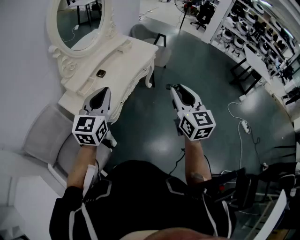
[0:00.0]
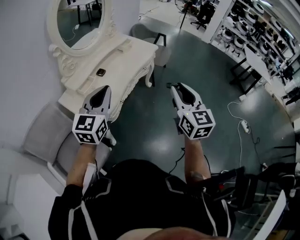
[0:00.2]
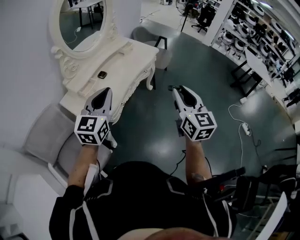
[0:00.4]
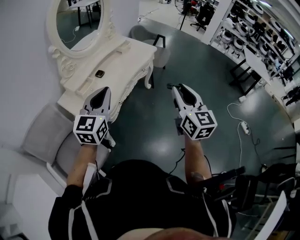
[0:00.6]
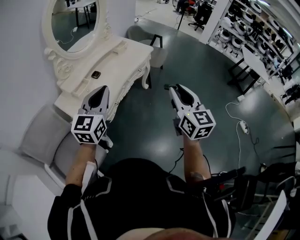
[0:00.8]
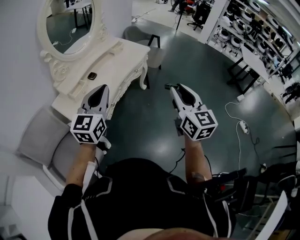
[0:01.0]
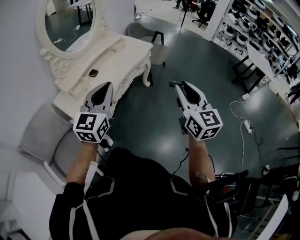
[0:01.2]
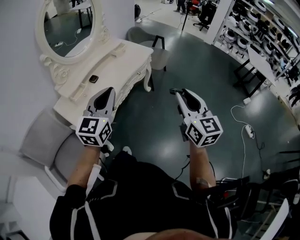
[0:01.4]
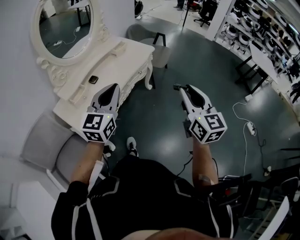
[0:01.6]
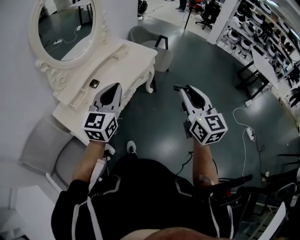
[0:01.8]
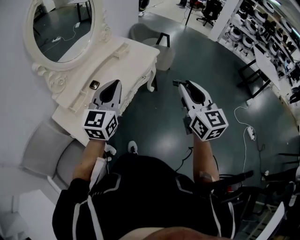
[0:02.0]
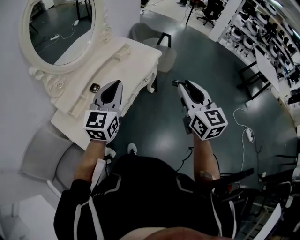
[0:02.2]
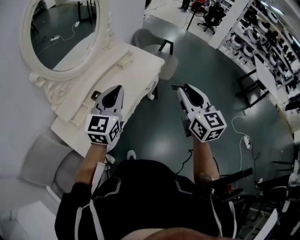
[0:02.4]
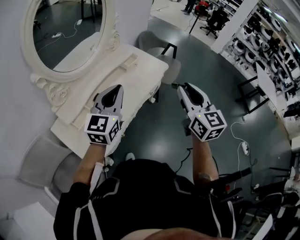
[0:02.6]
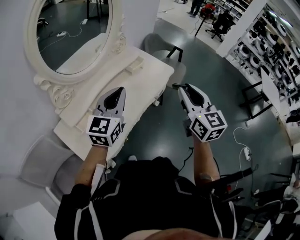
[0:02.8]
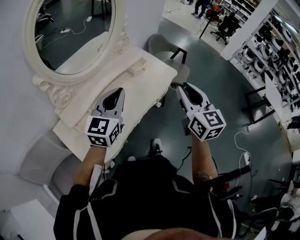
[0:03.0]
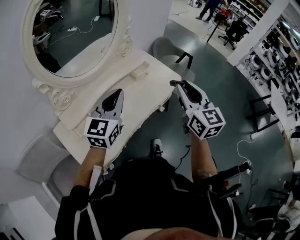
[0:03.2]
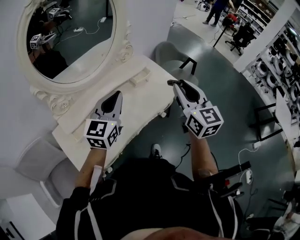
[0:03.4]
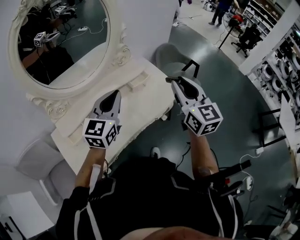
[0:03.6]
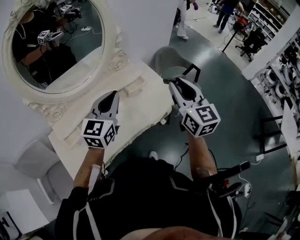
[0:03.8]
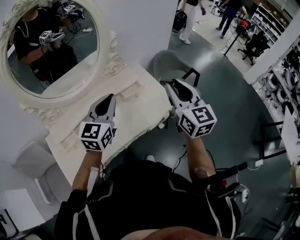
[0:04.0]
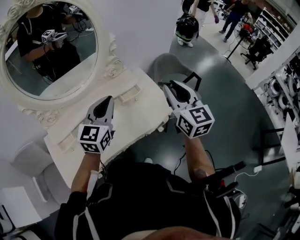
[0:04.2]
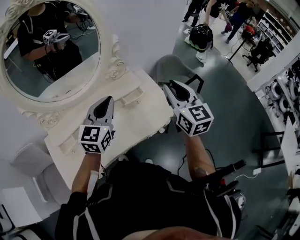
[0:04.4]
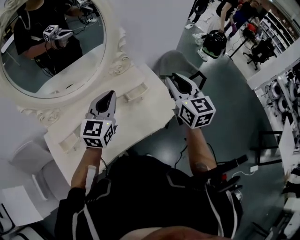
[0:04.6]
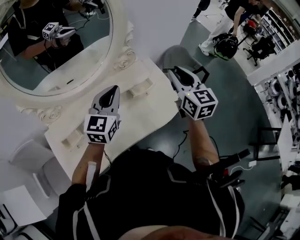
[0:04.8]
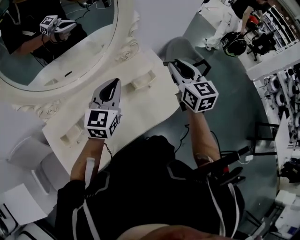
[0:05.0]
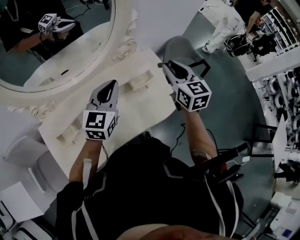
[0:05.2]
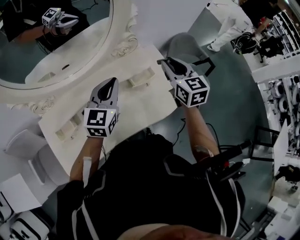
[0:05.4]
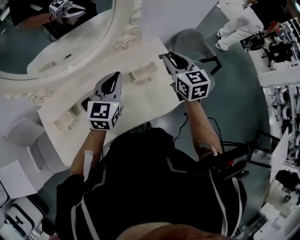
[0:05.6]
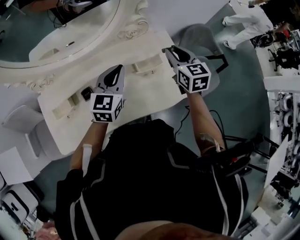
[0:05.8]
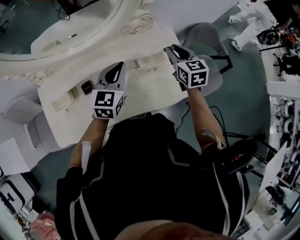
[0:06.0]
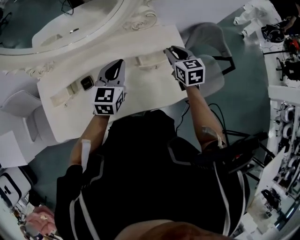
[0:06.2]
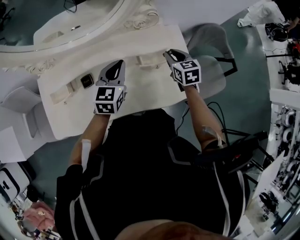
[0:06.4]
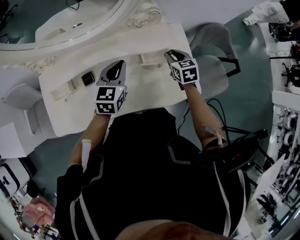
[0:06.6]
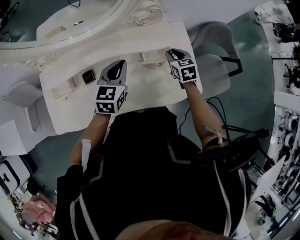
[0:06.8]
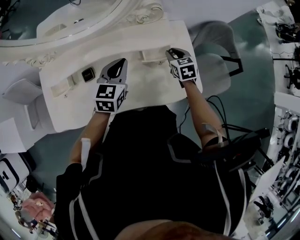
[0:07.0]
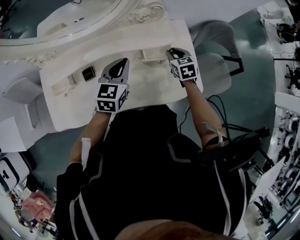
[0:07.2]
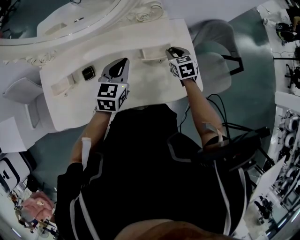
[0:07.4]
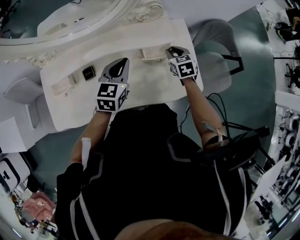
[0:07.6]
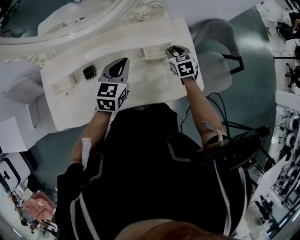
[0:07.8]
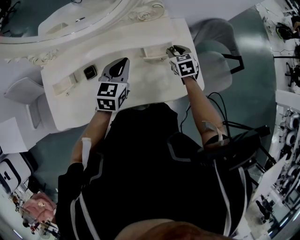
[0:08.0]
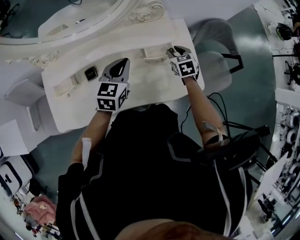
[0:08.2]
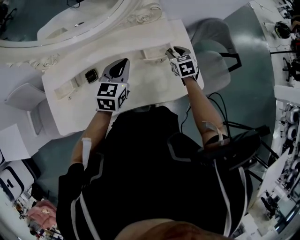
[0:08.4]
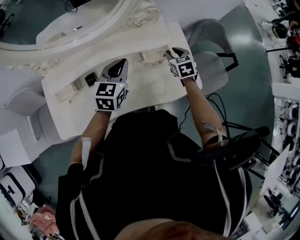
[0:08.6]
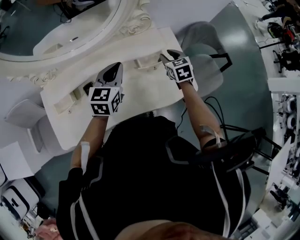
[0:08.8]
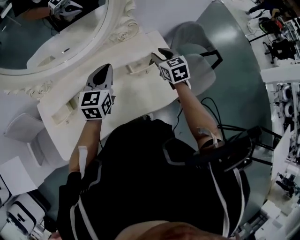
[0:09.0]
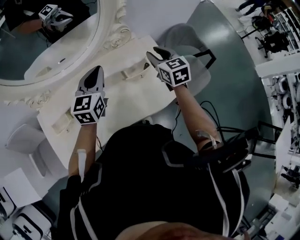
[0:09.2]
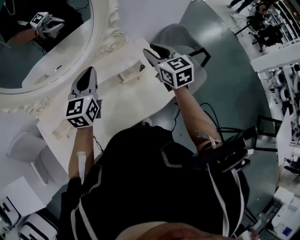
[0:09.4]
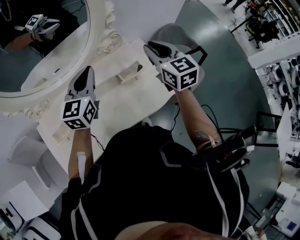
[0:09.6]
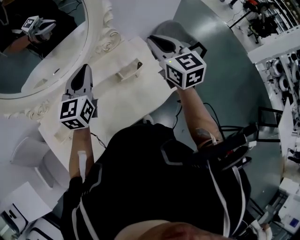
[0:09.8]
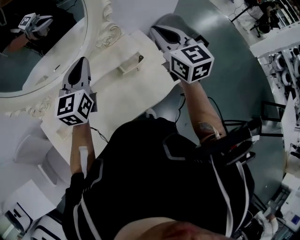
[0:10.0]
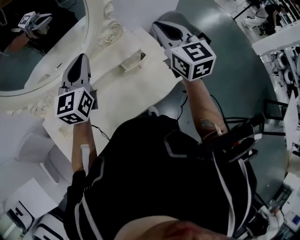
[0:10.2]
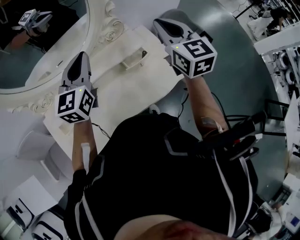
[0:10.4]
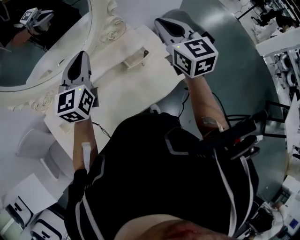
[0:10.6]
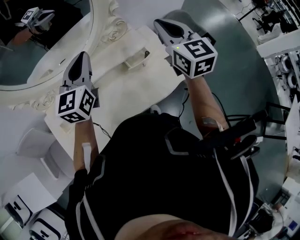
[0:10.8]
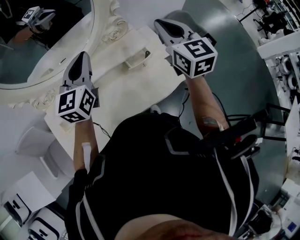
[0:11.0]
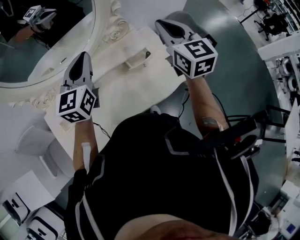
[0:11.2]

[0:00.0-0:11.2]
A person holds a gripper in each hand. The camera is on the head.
0:00.0 to 0:01.6: Both grippers travel together to the right and forward, roughly 15 cm.
0:01.6 to 0:03.2: The right gripper is displaced forward and to the left by about 40 cm. Meanwhile the left gripper shifts approximately 30 cm forward.
0:03.2 to 0:04.8: Both grippers travel together forward, roughly 25 cm.
0:04.8 to 0:06.4: The left gripper goes some 15 cm downward, and changes its angle by roughly 30 degrees. The right gripper travels downward and forward by roughly 30 cm, and turns by some 30 degrees.
0:06.4 to 0:08.0: The right gripper goes approximately 5 cm downward.
0:08.0 to 0:09.6: The left gripper goes roughly 15 cm upward, and rotates approximately 20 degrees. The right gripper heads upward, covering roughly 30 cm, and tips its fingers upward by some 30 degrees.
0:09.6 to 0:11.2: The right gripper goes about 5 cm upward.

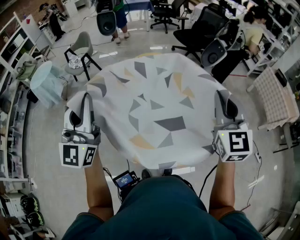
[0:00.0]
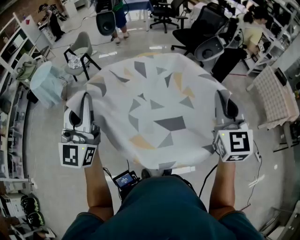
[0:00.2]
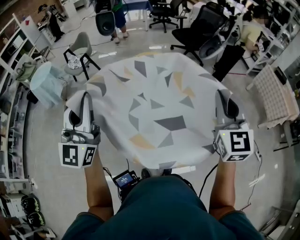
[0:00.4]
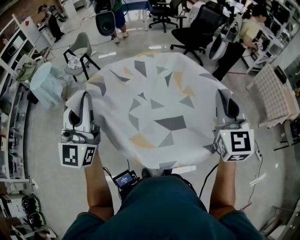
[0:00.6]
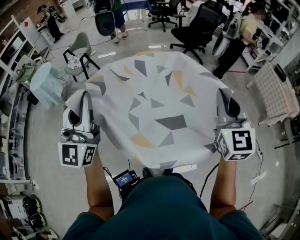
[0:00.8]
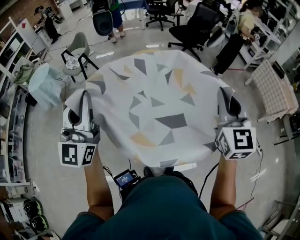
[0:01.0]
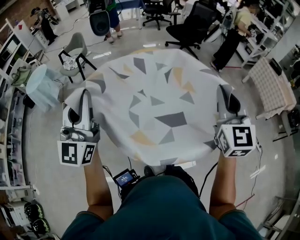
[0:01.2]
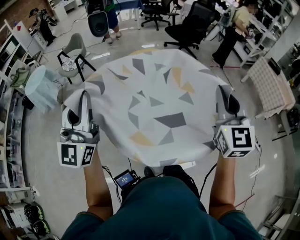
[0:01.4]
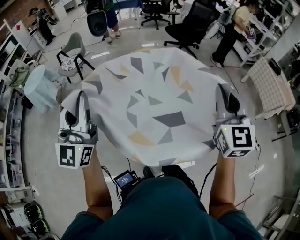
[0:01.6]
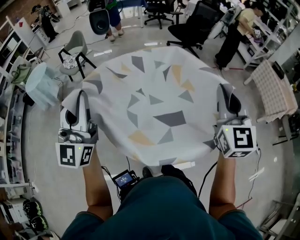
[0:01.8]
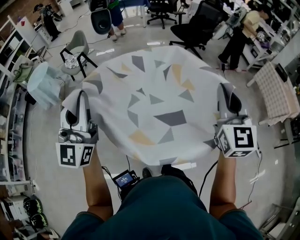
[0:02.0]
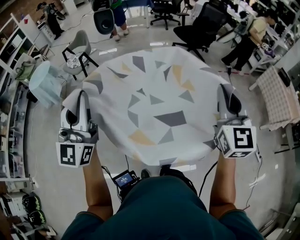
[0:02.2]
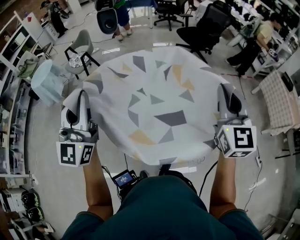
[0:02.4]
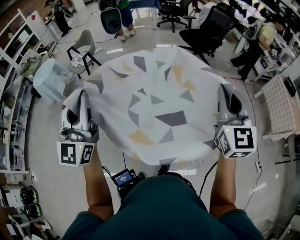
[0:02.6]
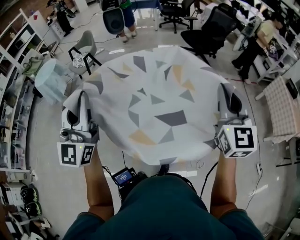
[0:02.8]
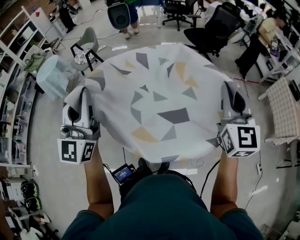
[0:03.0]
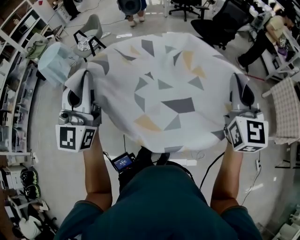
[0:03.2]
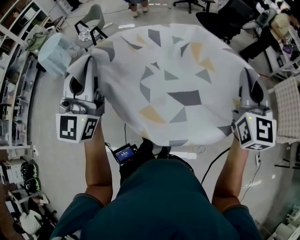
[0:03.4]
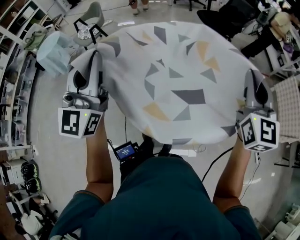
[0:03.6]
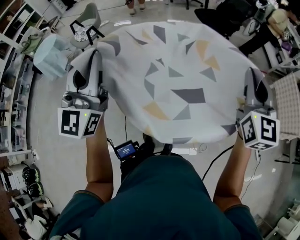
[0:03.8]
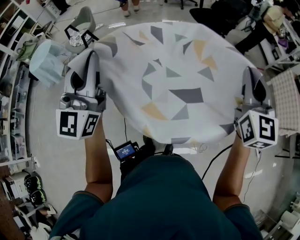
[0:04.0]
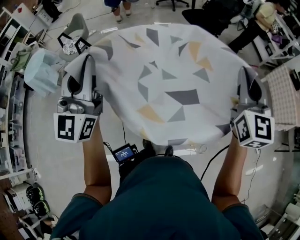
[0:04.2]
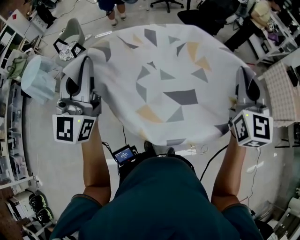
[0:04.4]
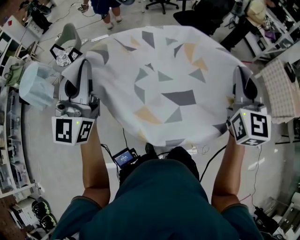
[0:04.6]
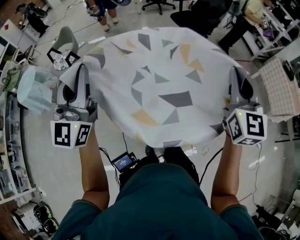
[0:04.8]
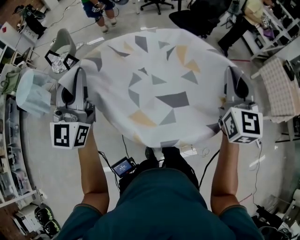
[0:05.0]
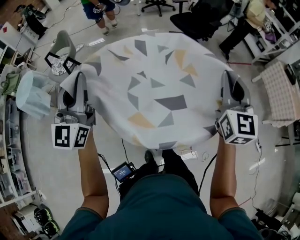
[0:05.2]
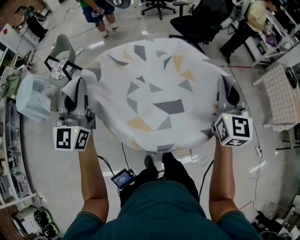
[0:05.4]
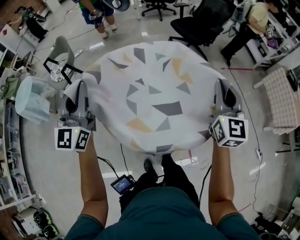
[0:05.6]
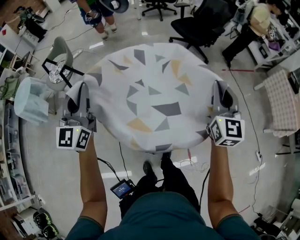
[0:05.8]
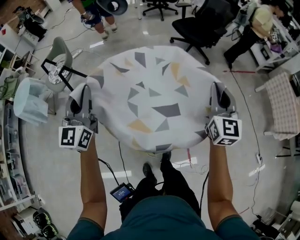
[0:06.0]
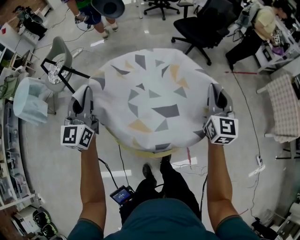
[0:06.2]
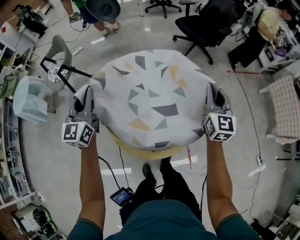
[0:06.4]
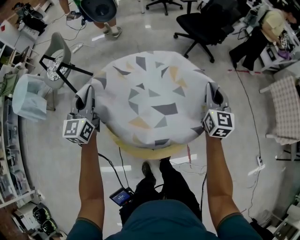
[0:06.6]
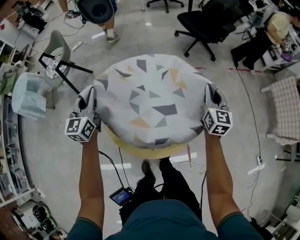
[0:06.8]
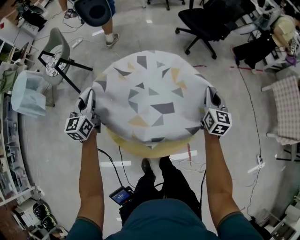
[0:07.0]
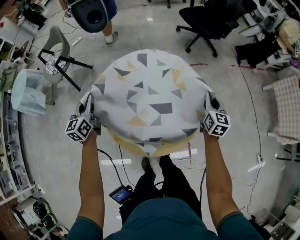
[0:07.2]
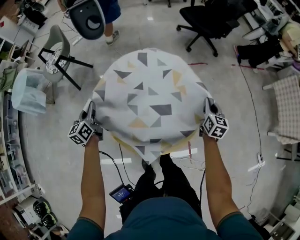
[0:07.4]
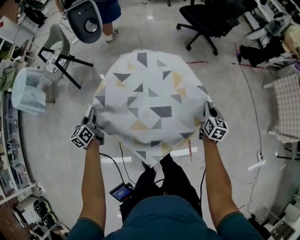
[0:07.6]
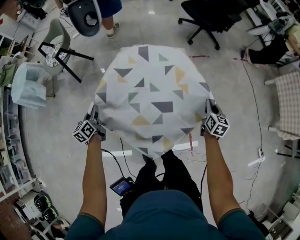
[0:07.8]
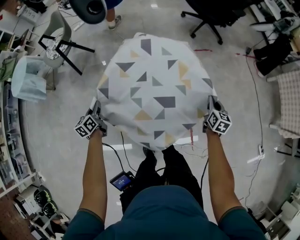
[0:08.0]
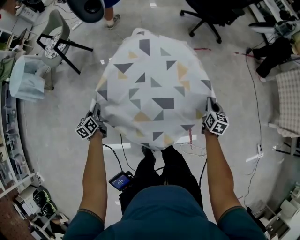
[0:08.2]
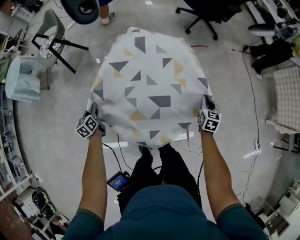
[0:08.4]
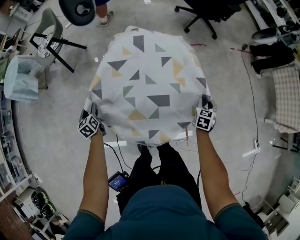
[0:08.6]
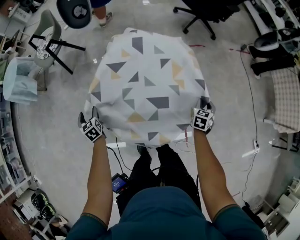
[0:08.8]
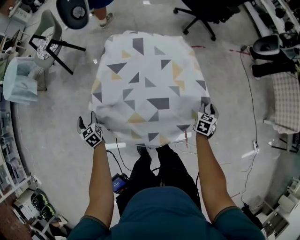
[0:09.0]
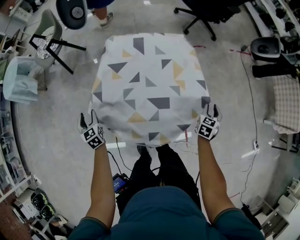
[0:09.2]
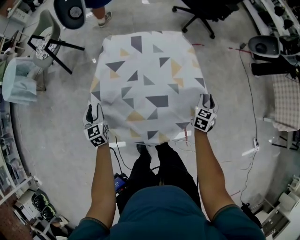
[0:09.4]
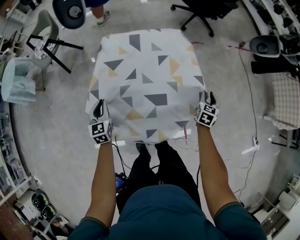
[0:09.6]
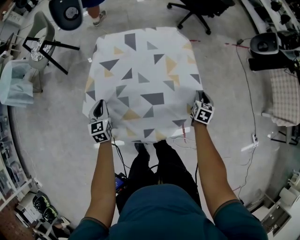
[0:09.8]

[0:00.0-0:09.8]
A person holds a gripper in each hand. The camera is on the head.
0:00.0 to 0:01.4: There are only small adjustments of the grippers.
0:01.4 to 0:02.8: The right gripper is displaced forward by roughly 10 cm. Meanwhile the left gripper moves forward, roughly 5 cm.
0:02.8 to 0:04.2: The left gripper is displaced forward by about 15 cm. The right gripper heads forward, covering approximately 10 cm.
0:04.2 to 0:05.6: The left gripper is displaced forward by roughly 20 cm, while the right gripper shifts about 20 cm forward and downward.
0:05.6 to 0:07.0: The two grippers go roughly 30 cm downward and forward. The left gripper rotates roughly 30 degrees.
0:07.0 to 0:08.4: The two grippers go about 25 cm downward and backward. The right gripper swivels roughly 20 degrees. The left gripper rotates about 40 degrees.
0:08.4 to 0:09.8: The left gripper is displaced to the right by some 10 cm, swivels about 30 degrees, and opens and closes again.

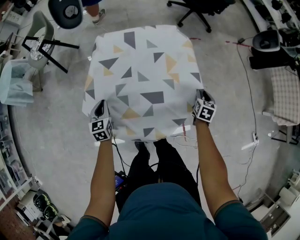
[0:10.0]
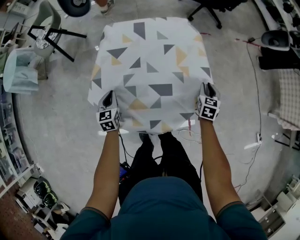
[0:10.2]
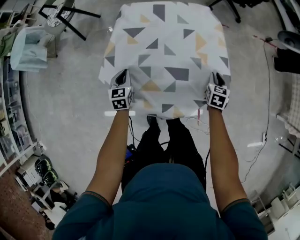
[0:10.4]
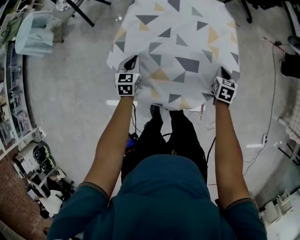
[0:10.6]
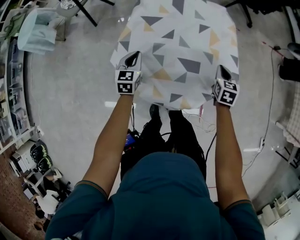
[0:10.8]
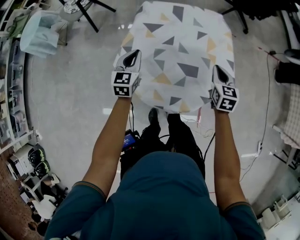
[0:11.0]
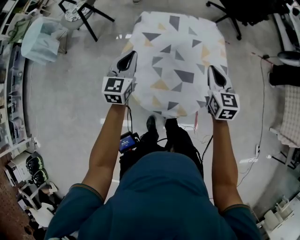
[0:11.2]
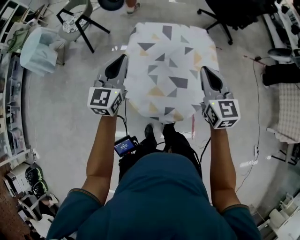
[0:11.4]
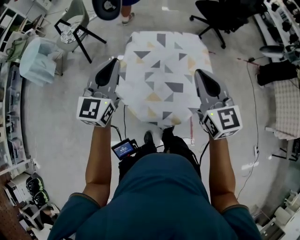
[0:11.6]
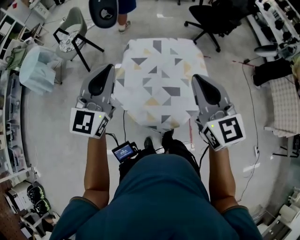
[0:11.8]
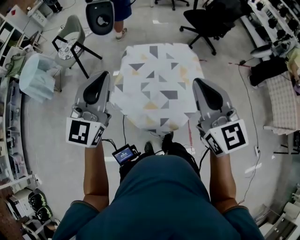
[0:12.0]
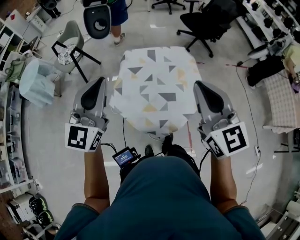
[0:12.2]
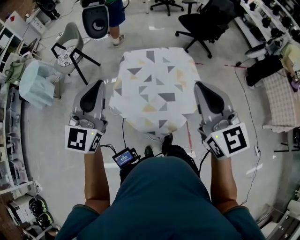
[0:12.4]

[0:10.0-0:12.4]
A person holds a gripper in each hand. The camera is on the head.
0:10.0 to 0:11.2: The right gripper moves upward and to the left, approximately 30 cm, turns by about 40 degrees, and closes; the left gripper moves upward, roughly 20 cm, and changes its angle by approximately 20 degrees.
0:11.2 to 0:12.4: The grippers both shift upward and backward by some 30 cm. The left gripper rotates approximately 30 degrees. Meanwhile the right gripper turns by roughly 20 degrees.
